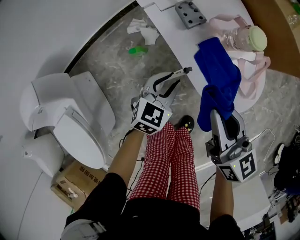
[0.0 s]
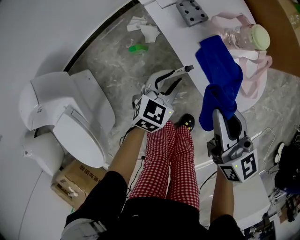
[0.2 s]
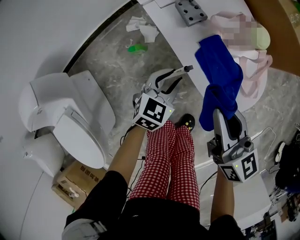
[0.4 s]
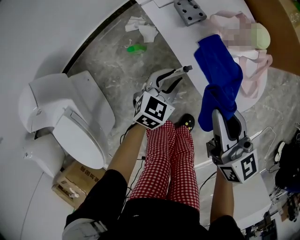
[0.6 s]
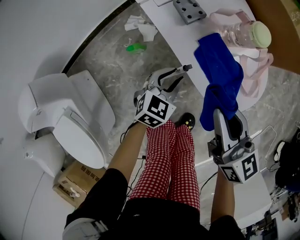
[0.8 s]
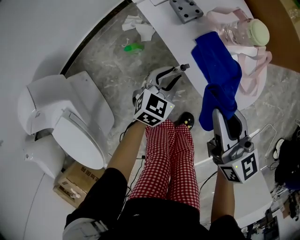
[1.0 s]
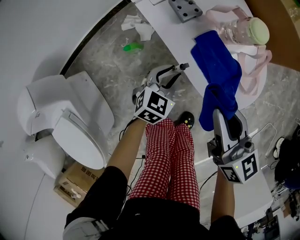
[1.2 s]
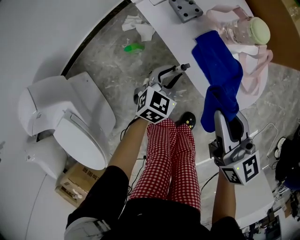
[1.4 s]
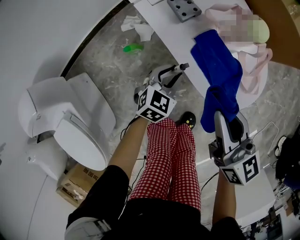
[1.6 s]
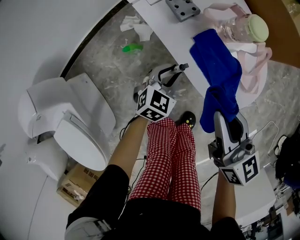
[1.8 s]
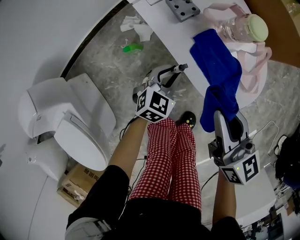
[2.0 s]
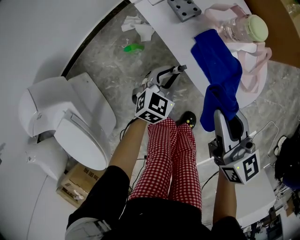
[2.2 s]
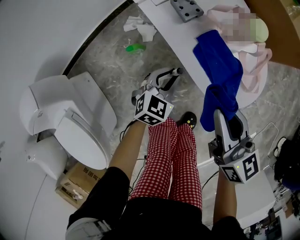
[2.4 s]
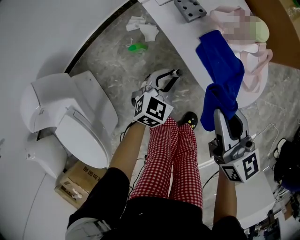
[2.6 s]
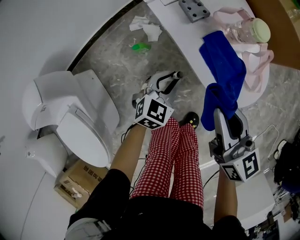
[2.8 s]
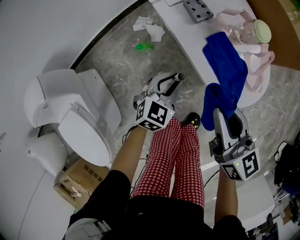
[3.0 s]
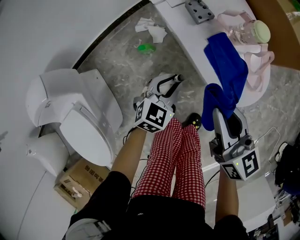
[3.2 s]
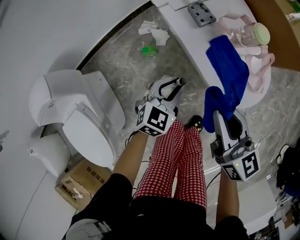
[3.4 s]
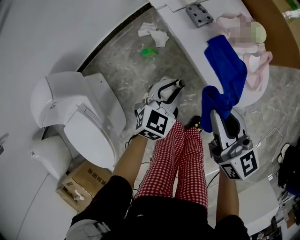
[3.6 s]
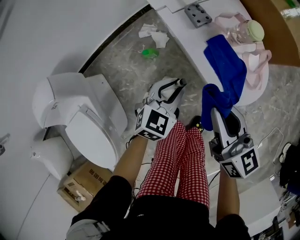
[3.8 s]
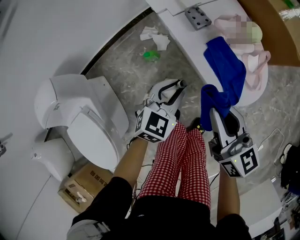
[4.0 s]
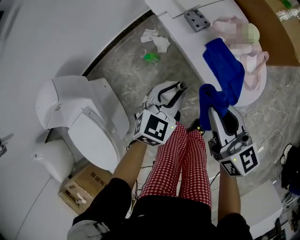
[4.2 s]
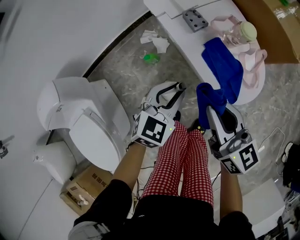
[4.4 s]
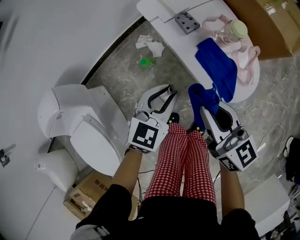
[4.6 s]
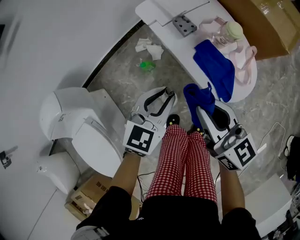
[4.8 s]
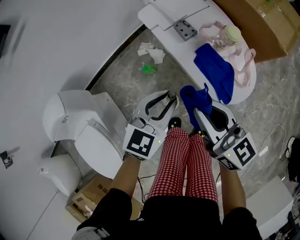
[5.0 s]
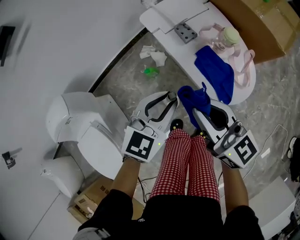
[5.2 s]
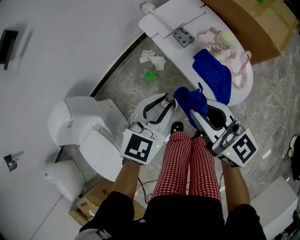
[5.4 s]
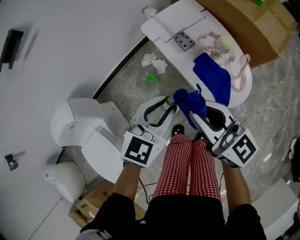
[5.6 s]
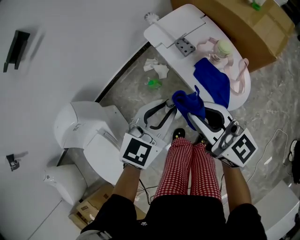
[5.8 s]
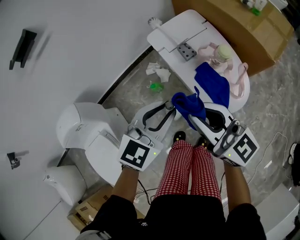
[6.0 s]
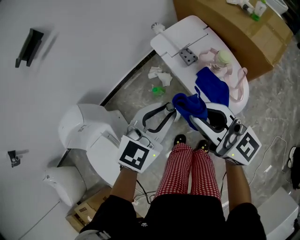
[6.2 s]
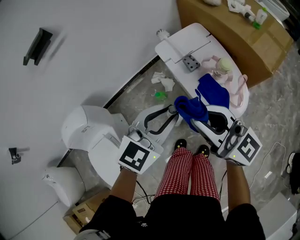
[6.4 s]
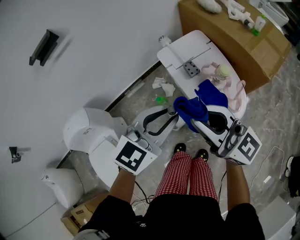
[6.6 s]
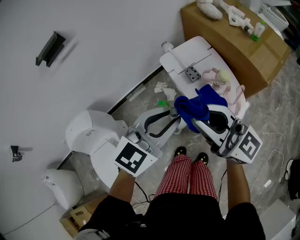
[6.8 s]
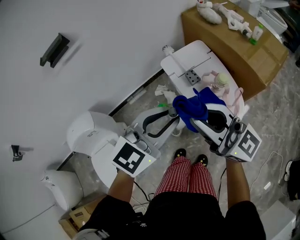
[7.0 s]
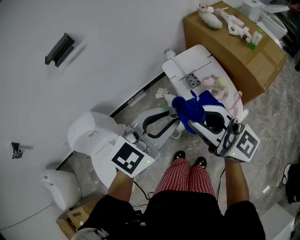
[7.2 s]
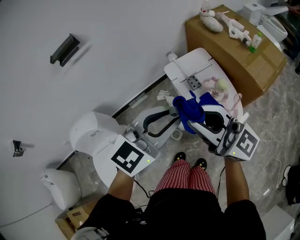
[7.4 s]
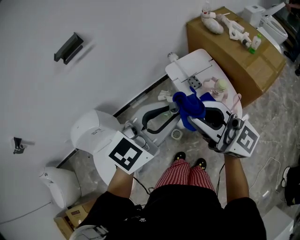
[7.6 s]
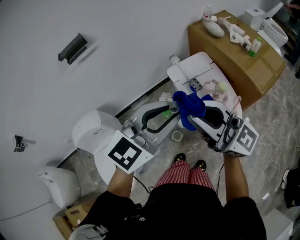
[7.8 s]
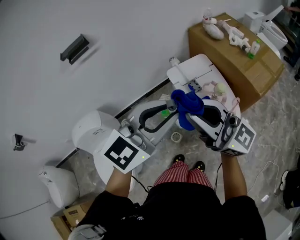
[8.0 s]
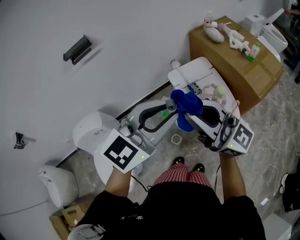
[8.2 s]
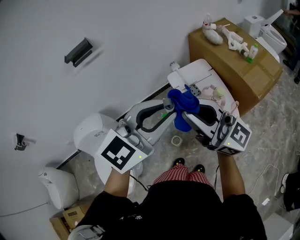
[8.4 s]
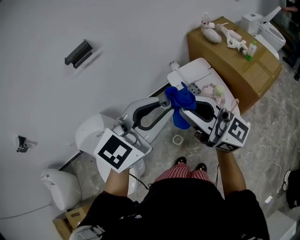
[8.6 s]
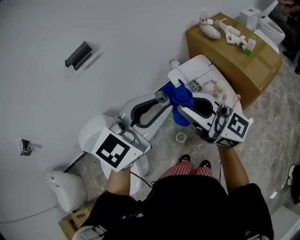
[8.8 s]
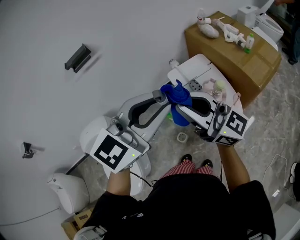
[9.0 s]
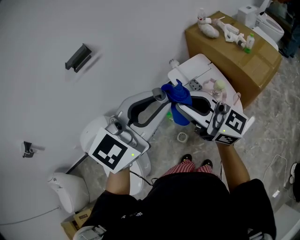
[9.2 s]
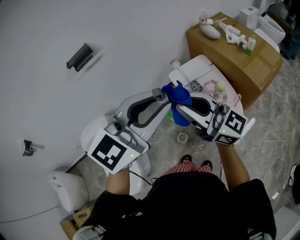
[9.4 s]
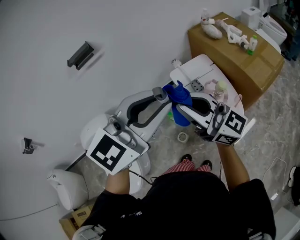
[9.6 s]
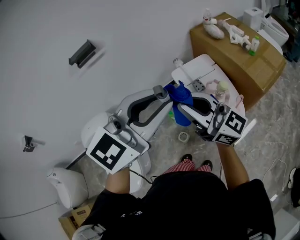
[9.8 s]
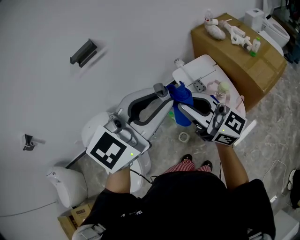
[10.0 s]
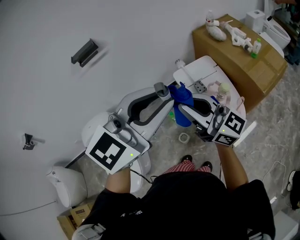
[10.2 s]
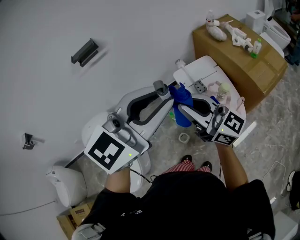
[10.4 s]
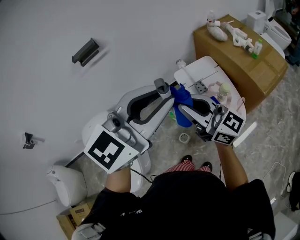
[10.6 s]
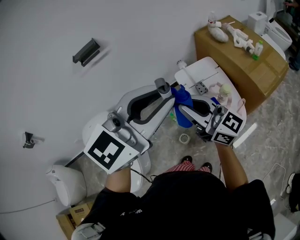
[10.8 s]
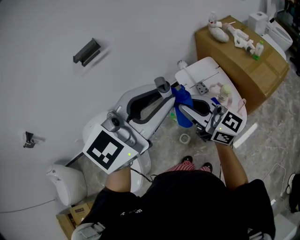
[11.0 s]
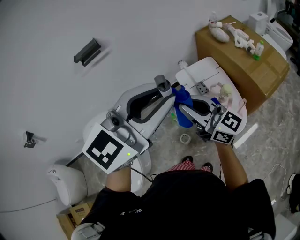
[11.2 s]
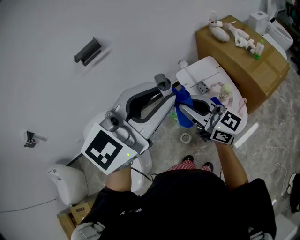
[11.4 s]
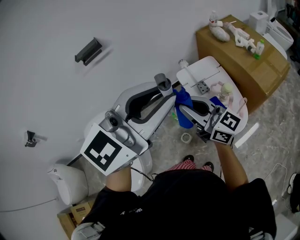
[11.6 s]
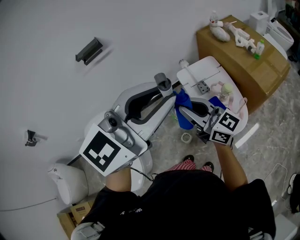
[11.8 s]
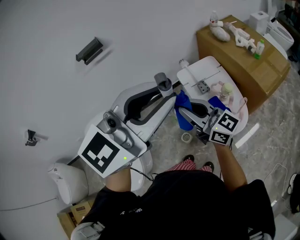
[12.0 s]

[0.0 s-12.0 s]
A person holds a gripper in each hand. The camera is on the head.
0.0 to 1.6 s: The left gripper travels downward by some 5 cm.
1.6 to 3.0 s: The left gripper is displaced upward by roughly 5 cm.
3.0 to 4.4 s: The right gripper moves approximately 5 cm. Meanwhile the left gripper shifts roughly 10 cm upward.
4.4 to 6.0 s: The two grippers go some 15 cm upward. The right gripper turns by approximately 20 degrees.
6.0 to 7.6 s: The grippers both shift upward by about 20 cm. The right gripper changes its angle by approximately 20 degrees.
7.6 to 9.0 s: The left gripper heads upward, covering roughly 10 cm.
9.0 to 10.4 s: The grippers stay close to where they were, moving slightly.
10.4 to 12.0 s: The right gripper travels downward by roughly 5 cm.

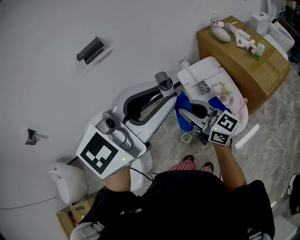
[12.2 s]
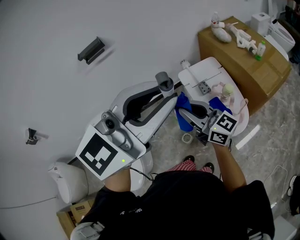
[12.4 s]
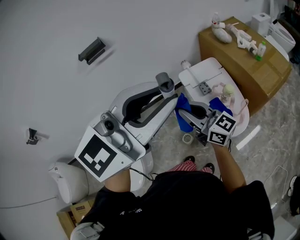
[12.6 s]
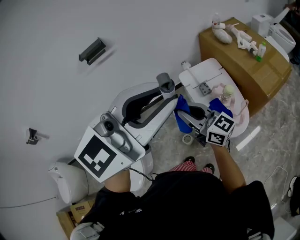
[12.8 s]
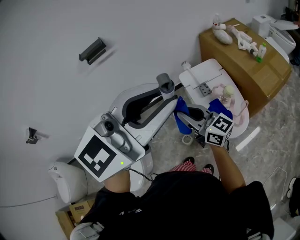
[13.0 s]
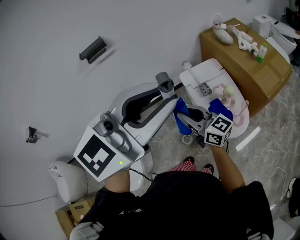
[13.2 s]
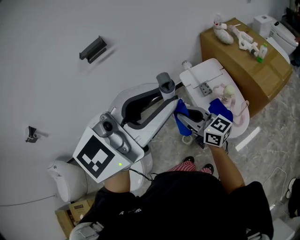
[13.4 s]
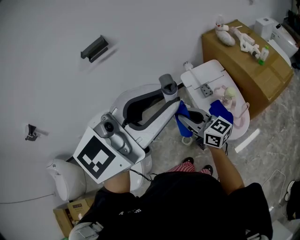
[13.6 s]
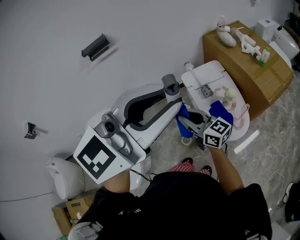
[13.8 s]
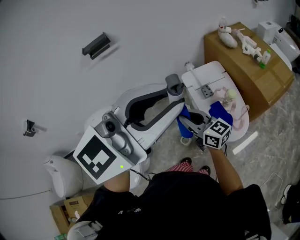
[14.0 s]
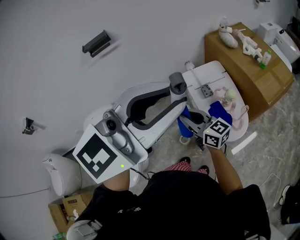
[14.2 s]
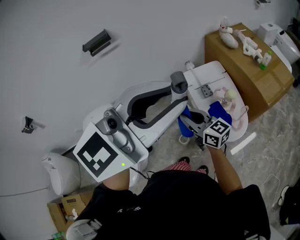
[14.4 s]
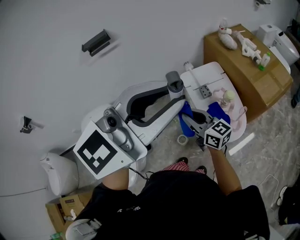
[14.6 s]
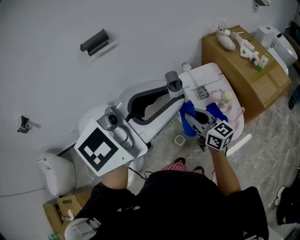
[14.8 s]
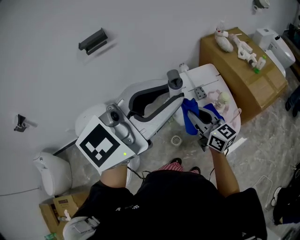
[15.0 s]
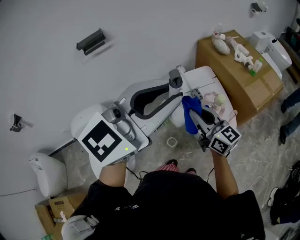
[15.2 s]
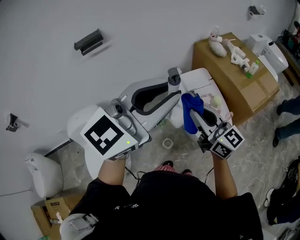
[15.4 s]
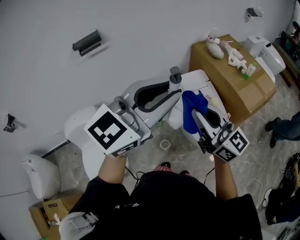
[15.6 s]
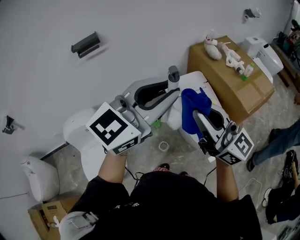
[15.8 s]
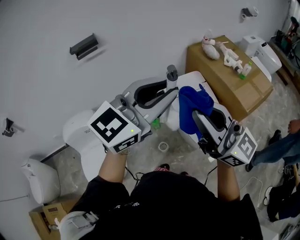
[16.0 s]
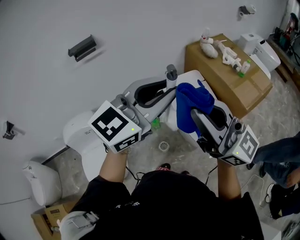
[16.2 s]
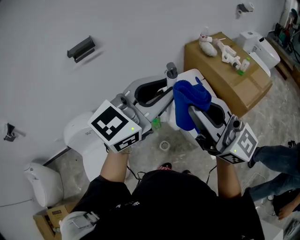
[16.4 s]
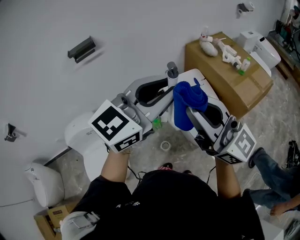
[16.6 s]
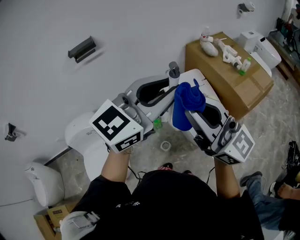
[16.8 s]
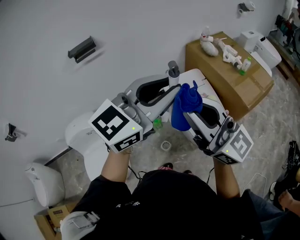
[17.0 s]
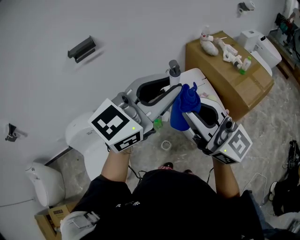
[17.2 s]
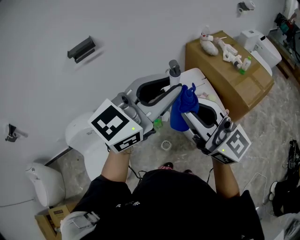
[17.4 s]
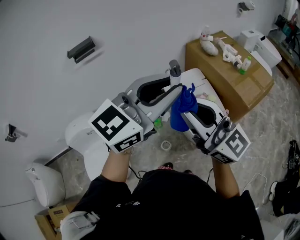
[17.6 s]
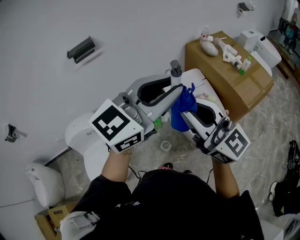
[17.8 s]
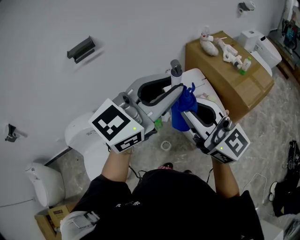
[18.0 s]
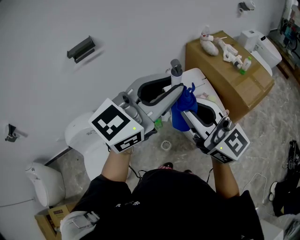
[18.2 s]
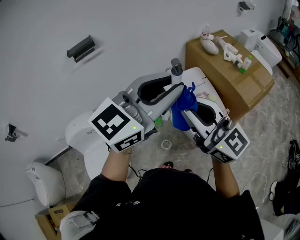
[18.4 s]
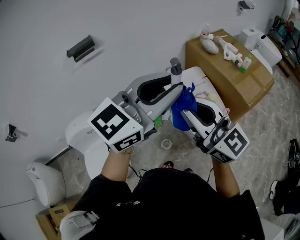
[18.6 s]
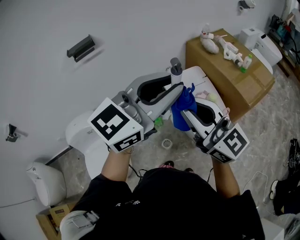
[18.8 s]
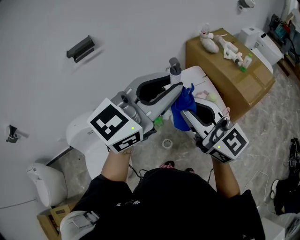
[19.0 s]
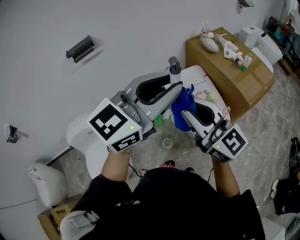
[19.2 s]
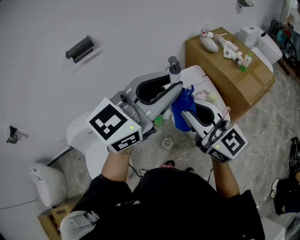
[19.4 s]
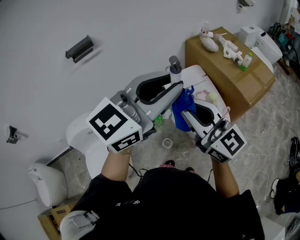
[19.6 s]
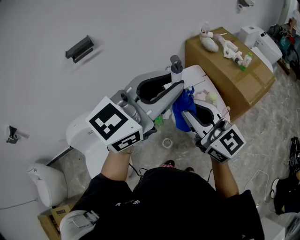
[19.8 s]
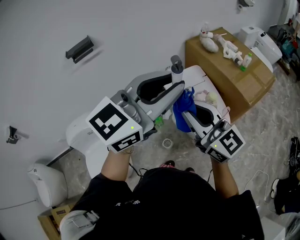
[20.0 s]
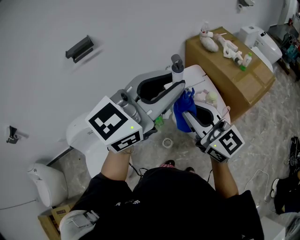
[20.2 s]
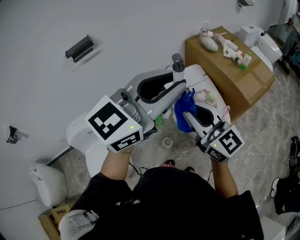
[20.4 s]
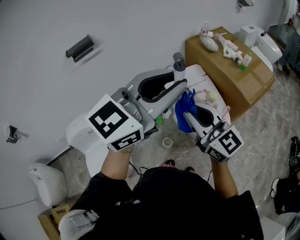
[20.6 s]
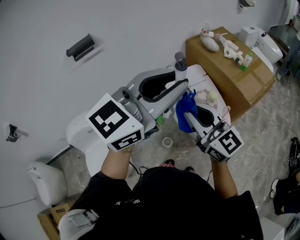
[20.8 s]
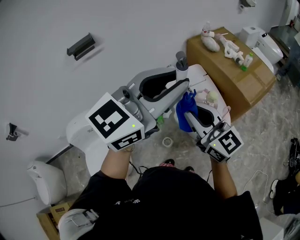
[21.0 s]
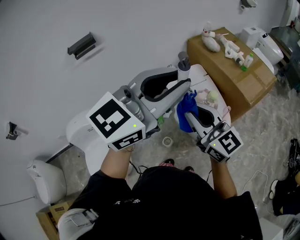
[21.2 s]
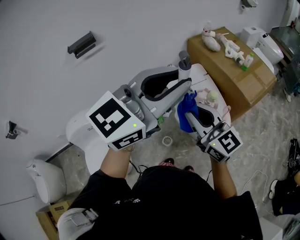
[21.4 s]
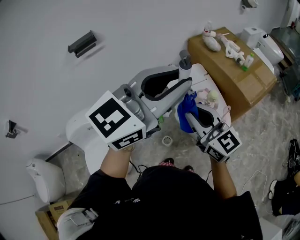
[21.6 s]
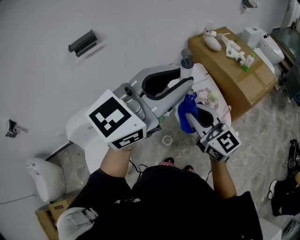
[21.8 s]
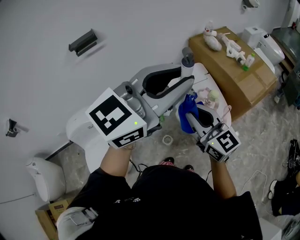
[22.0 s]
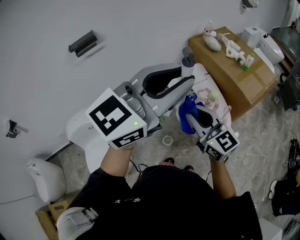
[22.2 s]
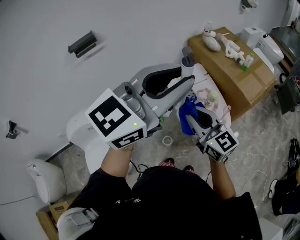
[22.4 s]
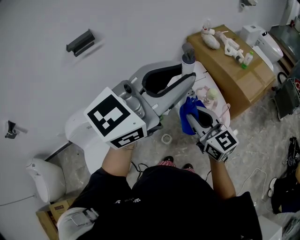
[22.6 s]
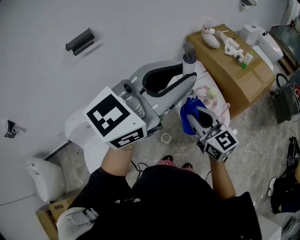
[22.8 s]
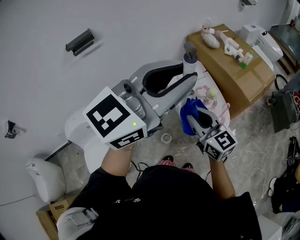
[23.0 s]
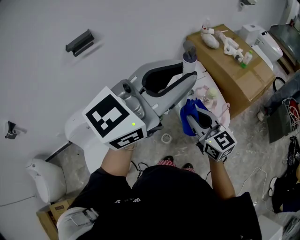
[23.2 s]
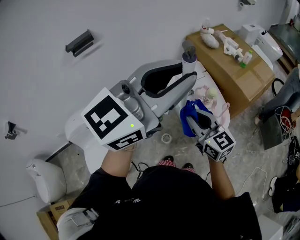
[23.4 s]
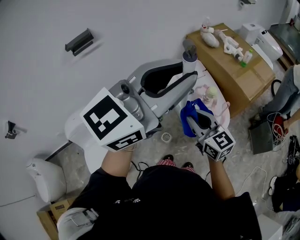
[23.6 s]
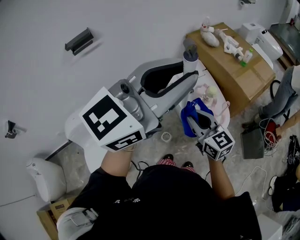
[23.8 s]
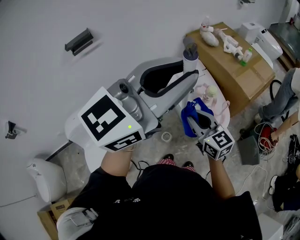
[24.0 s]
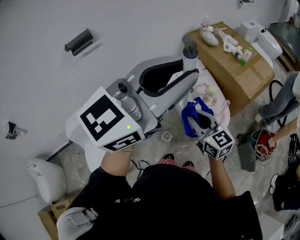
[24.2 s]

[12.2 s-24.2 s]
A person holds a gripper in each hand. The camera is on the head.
12.2 to 13.8 s: The right gripper is displaced downward by some 5 cm.
13.8 to 15.2 s: The right gripper moves to the right, about 5 cm.
15.2 to 16.6 s: The right gripper is displaced upward by approximately 20 cm, and rotates approximately 30 degrees.
16.6 to 18.2 s: The right gripper shifts by about 5 cm.
18.2 to 19.8 s: There are only small adjustments of the grippers.
19.8 to 21.2 s: The grippers stay close to where they were, moving slightly.
21.2 to 22.6 s: The right gripper heads downward, covering some 5 cm.
22.6 to 24.2 s: The right gripper moves downward, approximately 5 cm.
